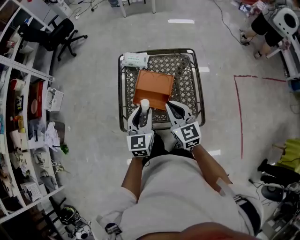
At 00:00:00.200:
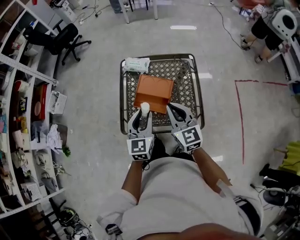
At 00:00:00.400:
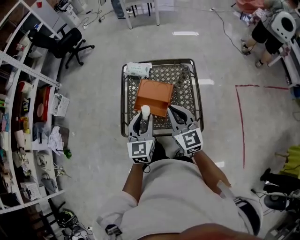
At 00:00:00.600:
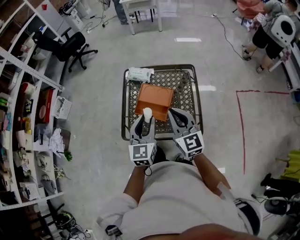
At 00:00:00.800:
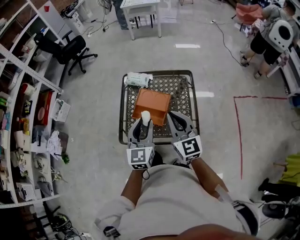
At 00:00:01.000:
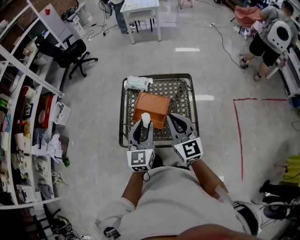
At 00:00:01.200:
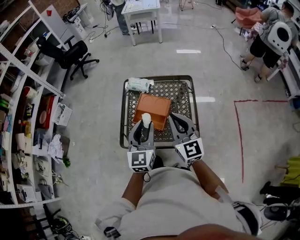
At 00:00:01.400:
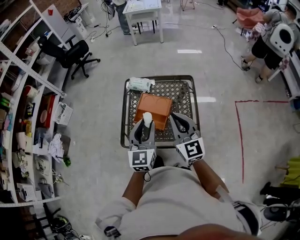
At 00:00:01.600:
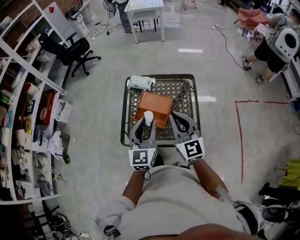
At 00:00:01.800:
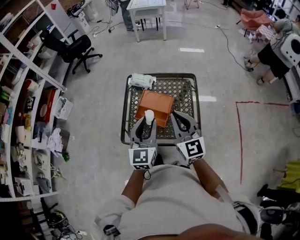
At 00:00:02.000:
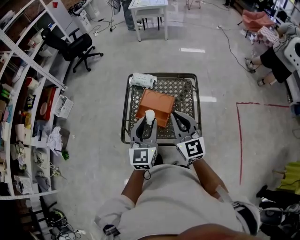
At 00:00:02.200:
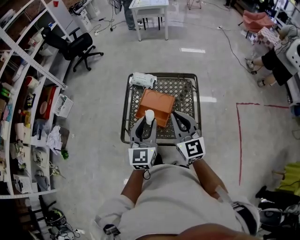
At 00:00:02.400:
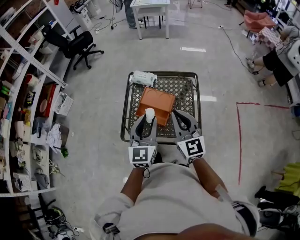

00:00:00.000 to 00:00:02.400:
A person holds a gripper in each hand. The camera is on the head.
00:00:00.000 to 00:00:01.200: Both grippers move upward and to the right, approximately 10 cm.
00:00:01.200 to 00:00:02.400: The grippers move only a little.

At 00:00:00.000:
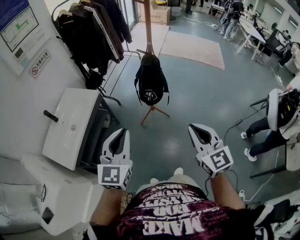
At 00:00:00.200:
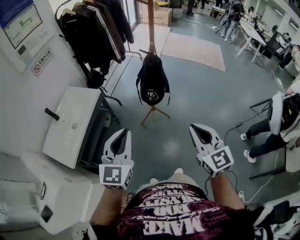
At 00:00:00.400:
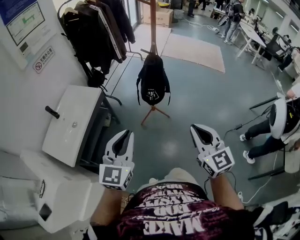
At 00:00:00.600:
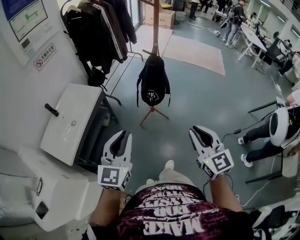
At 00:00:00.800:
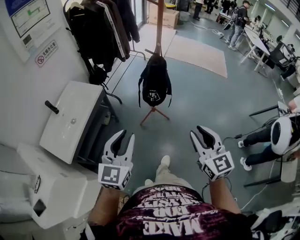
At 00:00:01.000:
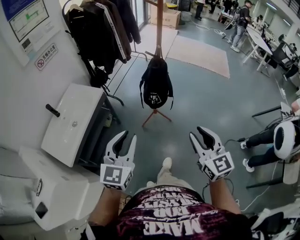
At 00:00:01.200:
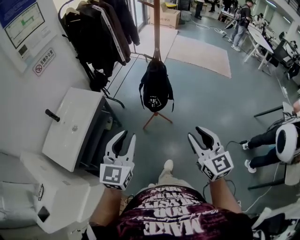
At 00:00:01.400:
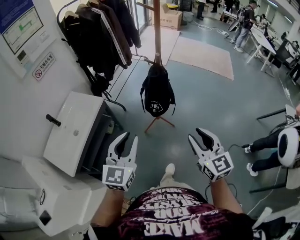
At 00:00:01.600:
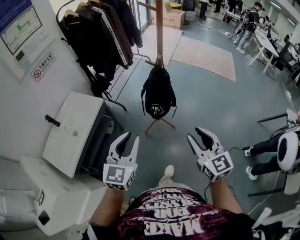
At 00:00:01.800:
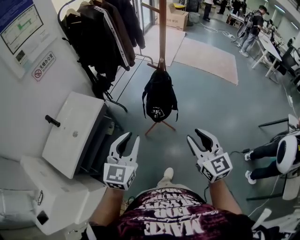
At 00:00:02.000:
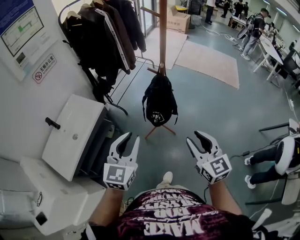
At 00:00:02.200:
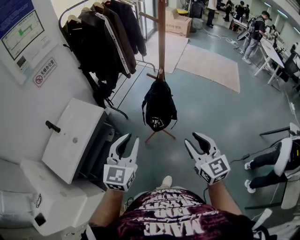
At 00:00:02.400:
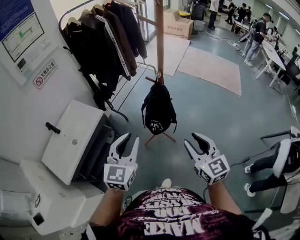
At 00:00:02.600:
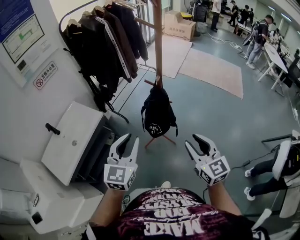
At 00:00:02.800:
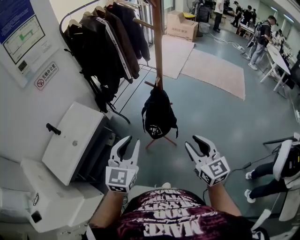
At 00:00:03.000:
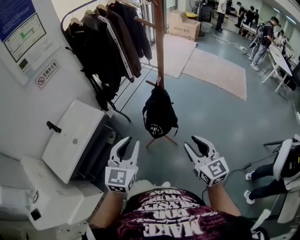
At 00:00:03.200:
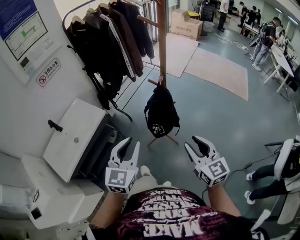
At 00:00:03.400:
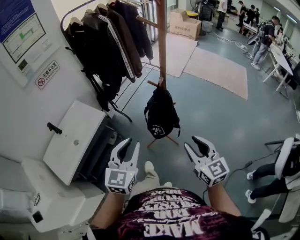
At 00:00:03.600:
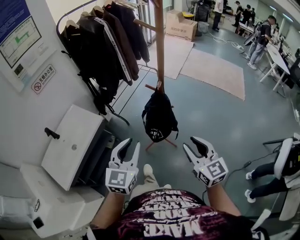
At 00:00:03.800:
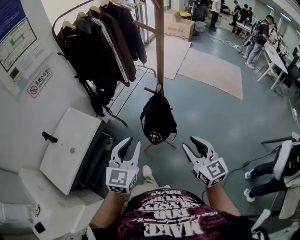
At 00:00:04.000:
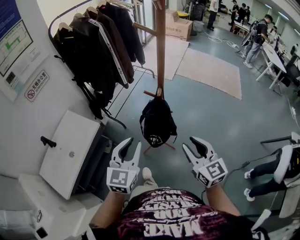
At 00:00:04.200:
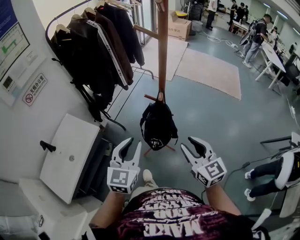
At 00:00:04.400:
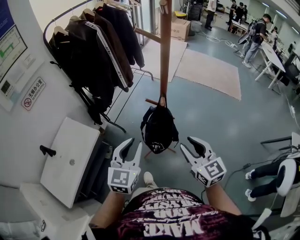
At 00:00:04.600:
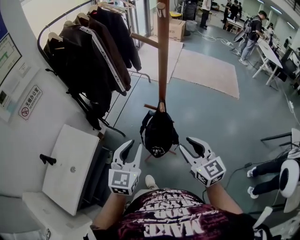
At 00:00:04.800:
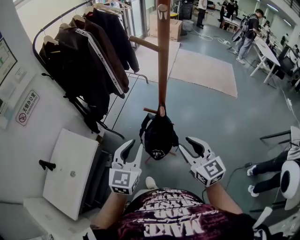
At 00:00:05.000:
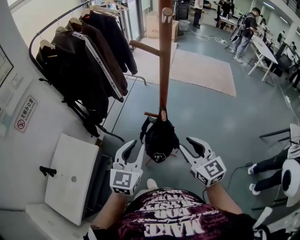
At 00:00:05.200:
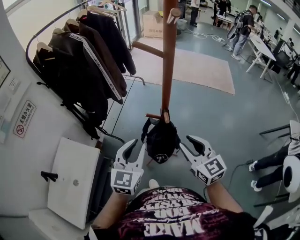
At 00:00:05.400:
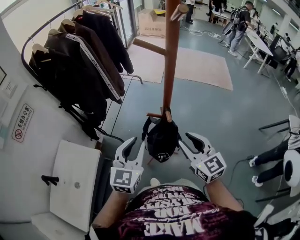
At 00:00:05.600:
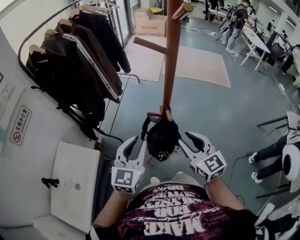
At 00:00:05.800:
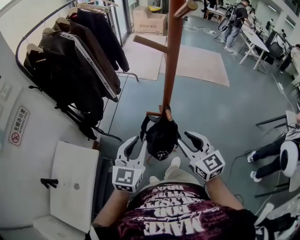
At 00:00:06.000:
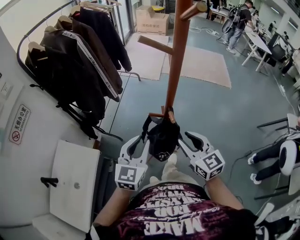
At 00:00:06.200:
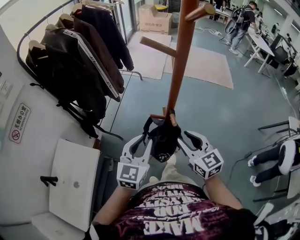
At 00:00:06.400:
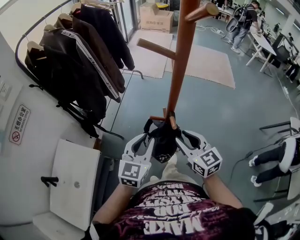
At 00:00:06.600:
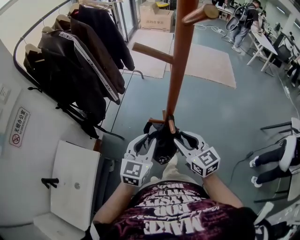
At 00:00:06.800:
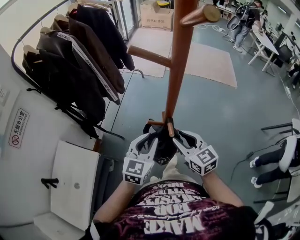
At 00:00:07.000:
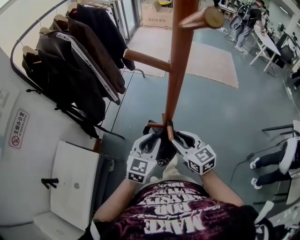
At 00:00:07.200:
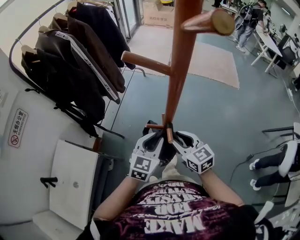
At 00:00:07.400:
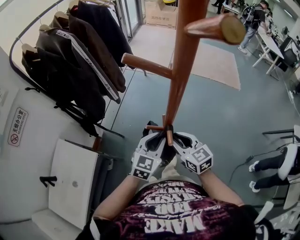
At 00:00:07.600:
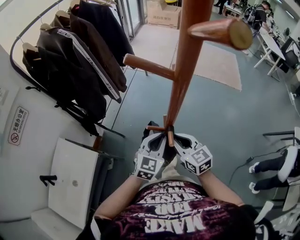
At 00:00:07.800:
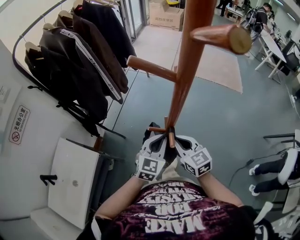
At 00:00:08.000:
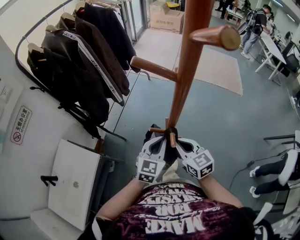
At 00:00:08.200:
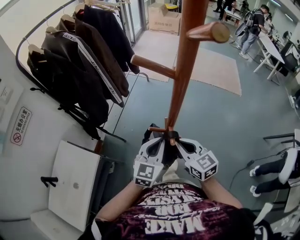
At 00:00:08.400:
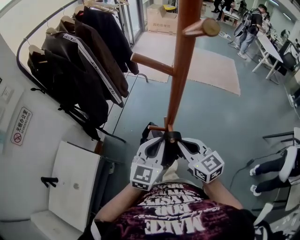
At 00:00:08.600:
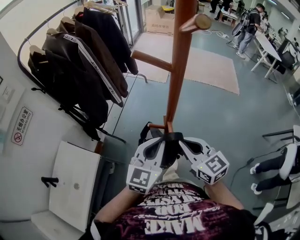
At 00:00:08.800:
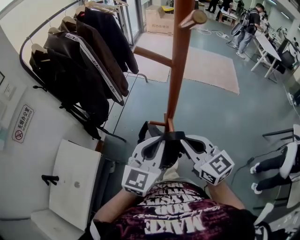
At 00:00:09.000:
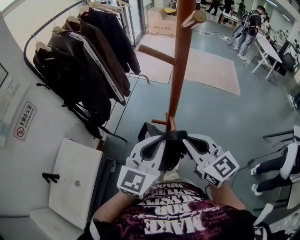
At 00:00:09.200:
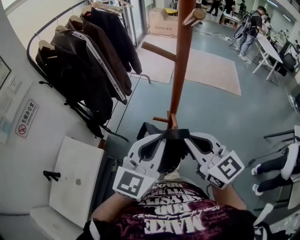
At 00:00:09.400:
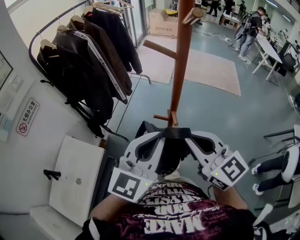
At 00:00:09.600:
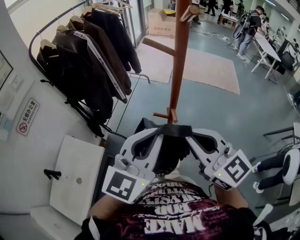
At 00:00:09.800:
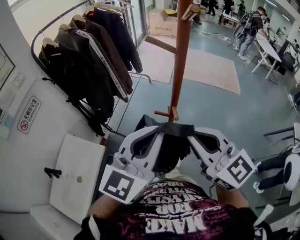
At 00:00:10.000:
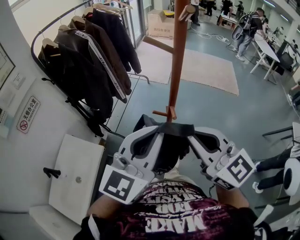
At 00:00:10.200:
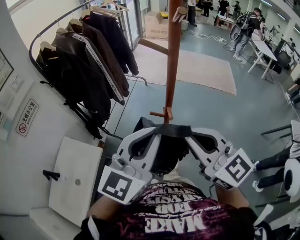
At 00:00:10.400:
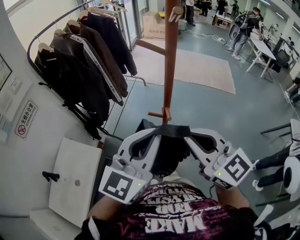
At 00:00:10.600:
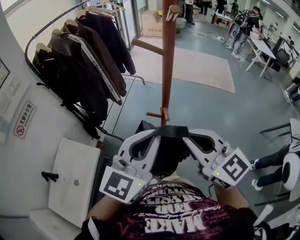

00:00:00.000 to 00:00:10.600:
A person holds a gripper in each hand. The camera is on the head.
00:00:00.000 to 00:00:01.600: Both grippers travel together forward, about 10 cm. The right gripper opens up.
00:00:01.600 to 00:00:03.000: The grippers both shift forward and to the right by some 10 cm.
00:00:03.000 to 00:00:04.600: The two grippers go roughly 15 cm forward.
00:00:04.600 to 00:00:06.000: Both grippers move forward, roughly 10 cm.
00:00:06.000 to 00:00:07.600: The right gripper travels forward and downward by some 10 cm, and closes, while the left gripper travels to the right, forward and downward by about 15 cm.
00:00:07.600 to 00:00:09.000: The grippers both shift upward and backward by approximately 20 cm.
00:00:09.000 to 00:00:10.600: Both grippers travel together upward and backward, some 10 cm.

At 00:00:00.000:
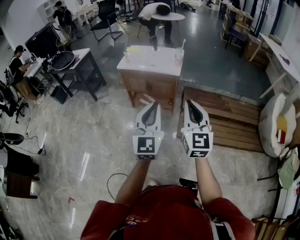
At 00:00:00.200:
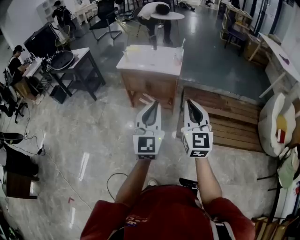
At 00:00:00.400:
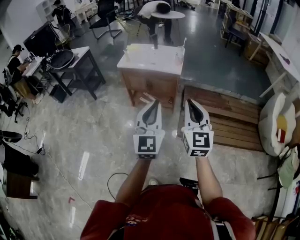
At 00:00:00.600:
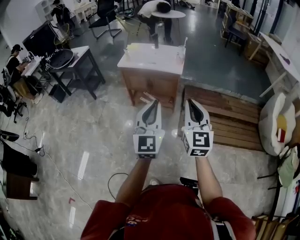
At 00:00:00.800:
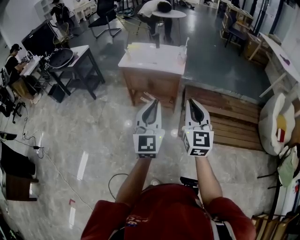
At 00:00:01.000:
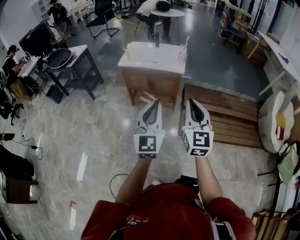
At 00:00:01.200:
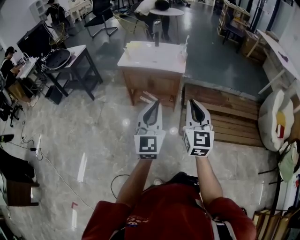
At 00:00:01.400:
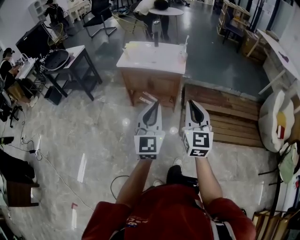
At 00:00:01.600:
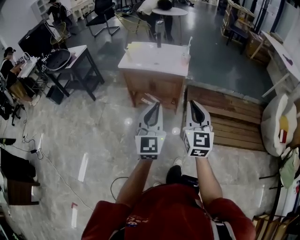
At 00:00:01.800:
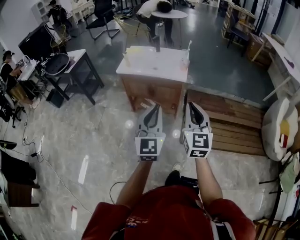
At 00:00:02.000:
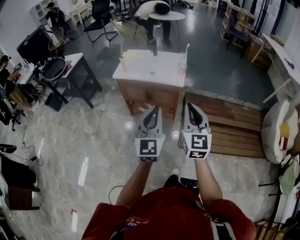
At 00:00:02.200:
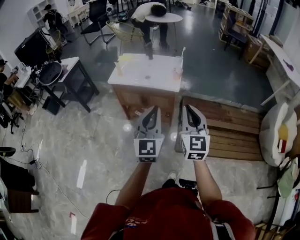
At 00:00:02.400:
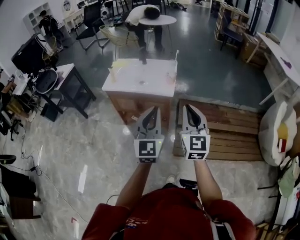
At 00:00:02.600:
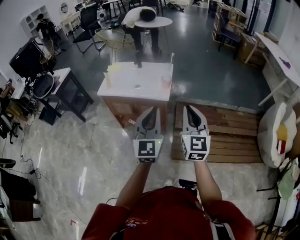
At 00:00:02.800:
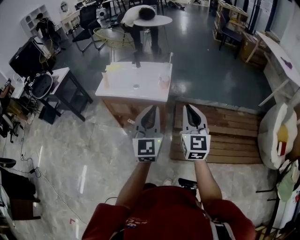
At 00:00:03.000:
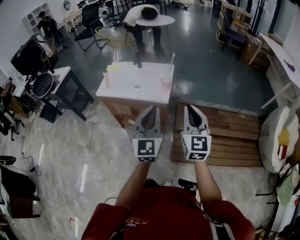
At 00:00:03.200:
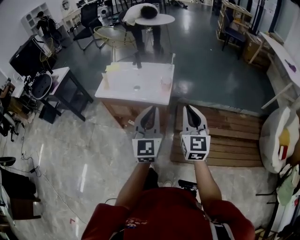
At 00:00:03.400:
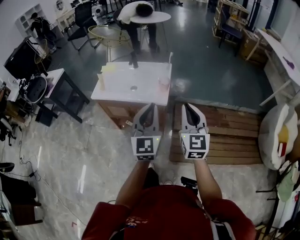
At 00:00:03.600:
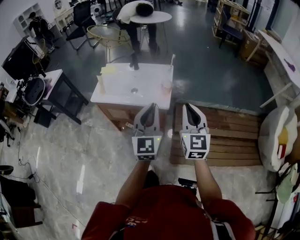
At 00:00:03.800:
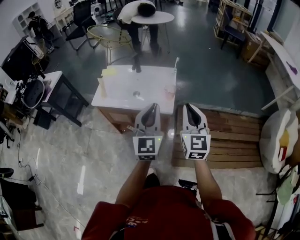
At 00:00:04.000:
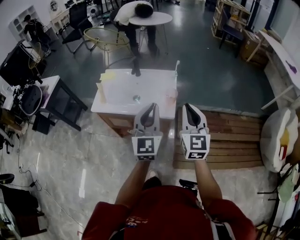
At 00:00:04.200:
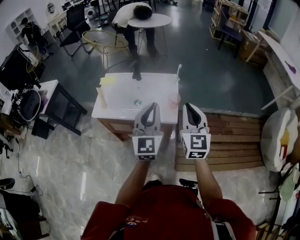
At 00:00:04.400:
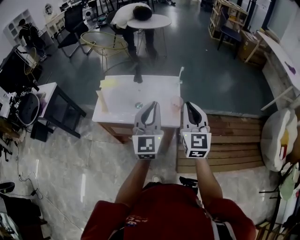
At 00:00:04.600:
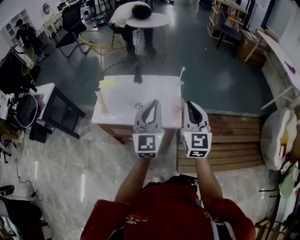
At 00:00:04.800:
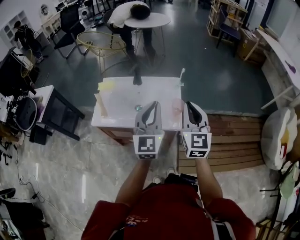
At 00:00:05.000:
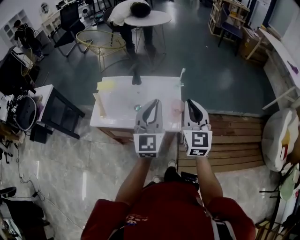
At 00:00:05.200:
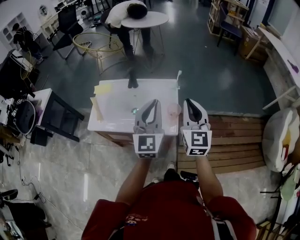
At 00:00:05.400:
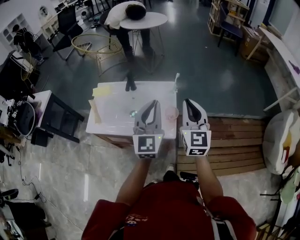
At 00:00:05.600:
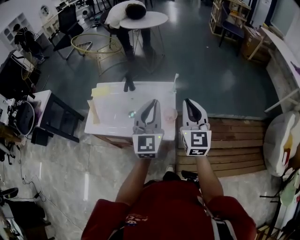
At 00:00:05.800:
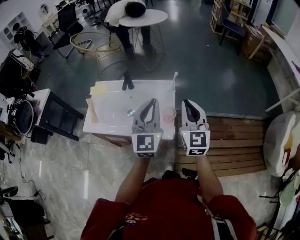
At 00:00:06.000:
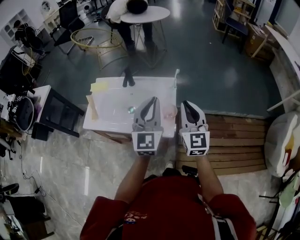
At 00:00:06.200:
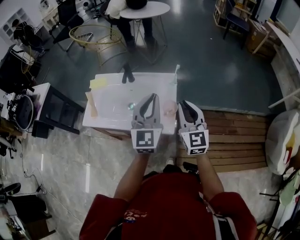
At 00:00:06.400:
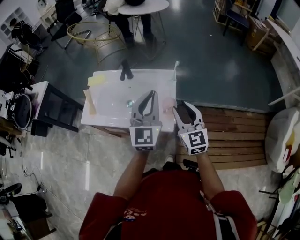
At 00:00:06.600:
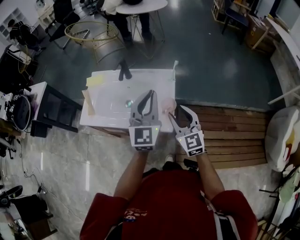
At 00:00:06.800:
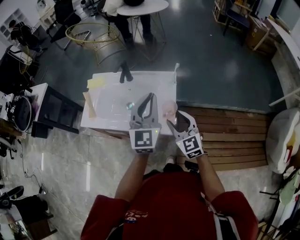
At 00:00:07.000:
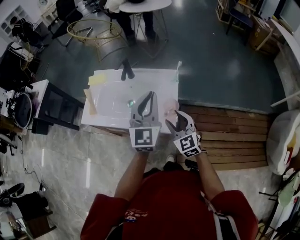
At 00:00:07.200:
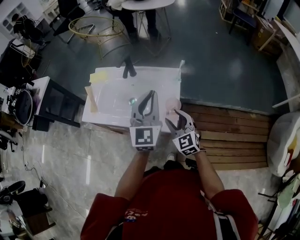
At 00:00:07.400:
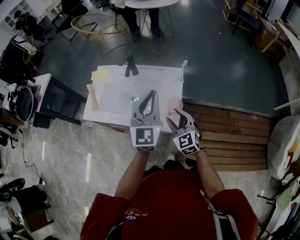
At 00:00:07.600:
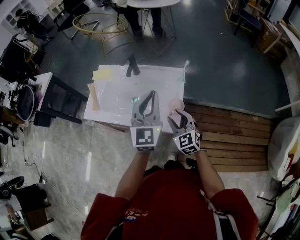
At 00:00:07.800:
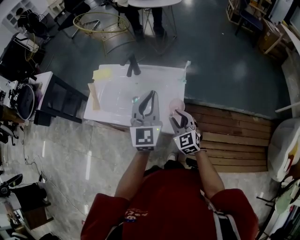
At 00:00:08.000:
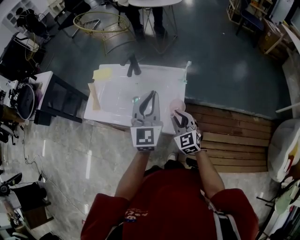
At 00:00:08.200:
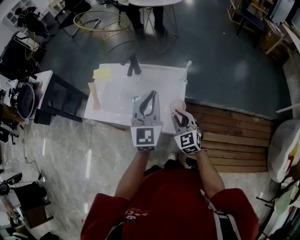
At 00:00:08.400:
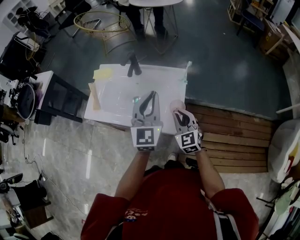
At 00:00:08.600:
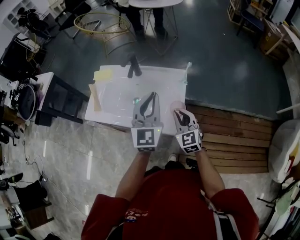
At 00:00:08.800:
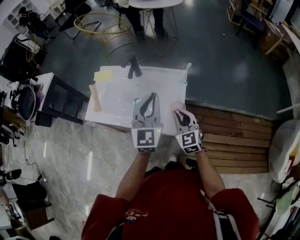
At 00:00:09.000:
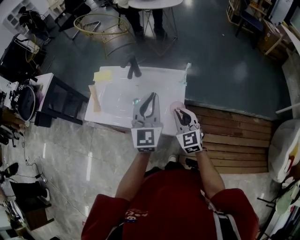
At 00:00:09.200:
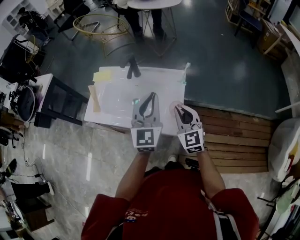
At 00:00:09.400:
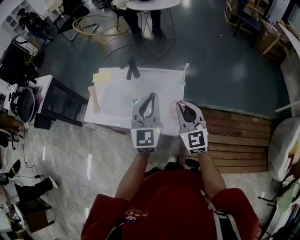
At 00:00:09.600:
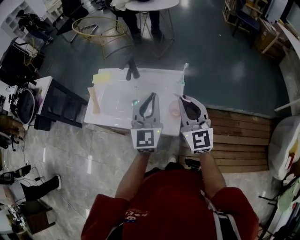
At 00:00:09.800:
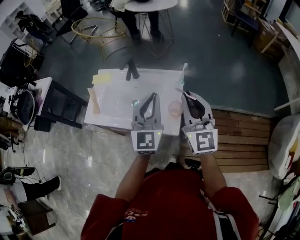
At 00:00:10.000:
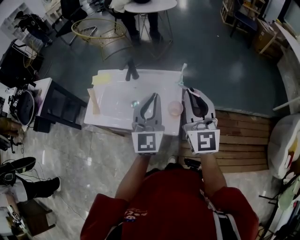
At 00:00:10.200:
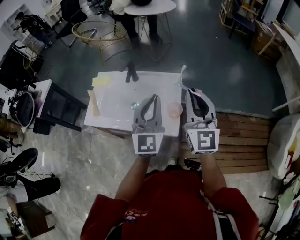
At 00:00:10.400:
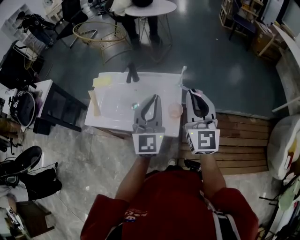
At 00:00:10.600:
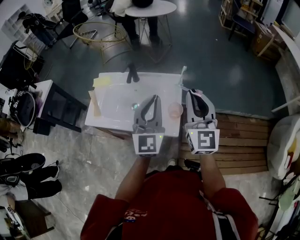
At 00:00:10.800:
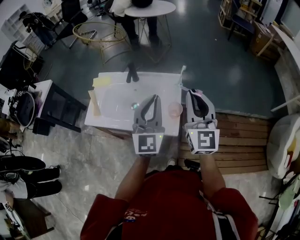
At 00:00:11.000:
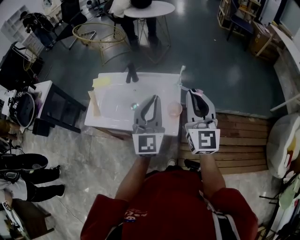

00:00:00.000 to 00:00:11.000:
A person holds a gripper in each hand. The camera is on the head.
00:00:00.000 to 00:00:01.600: Both grippers travel together forward and to the left, roughly 10 cm.
00:00:01.600 to 00:00:03.200: The grippers both shift forward and to the right by about 30 cm.
00:00:03.200 to 00:00:04.800: Both grippers travel together forward and to the left, roughly 25 cm.
00:00:04.800 to 00:00:06.200: The right gripper is displaced forward and downward by approximately 10 cm; the left gripper moves forward and to the right, about 10 cm.
00:00:06.200 to 00:00:07.800: The right gripper heads downward, covering roughly 15 cm, changes its angle by about 30 degrees, and opens its fingers, while the left gripper ends up about 5 cm from where it was.
00:00:07.800 to 00:00:09.400: The right gripper travels upward by approximately 10 cm, and closes.
00:00:09.400 to 00:00:11.000: The left gripper changes place by approximately 5 cm. The right gripper travels upward by approximately 10 cm.
